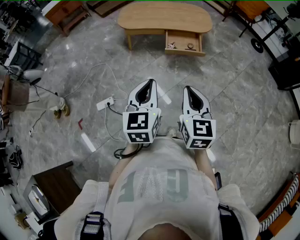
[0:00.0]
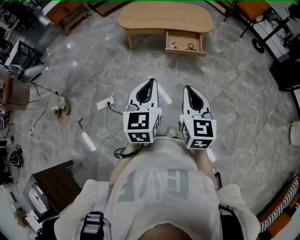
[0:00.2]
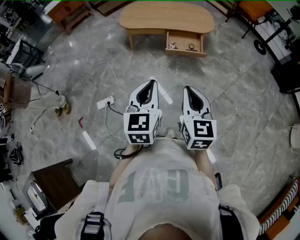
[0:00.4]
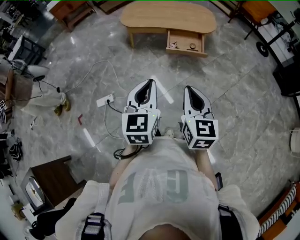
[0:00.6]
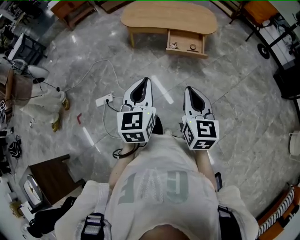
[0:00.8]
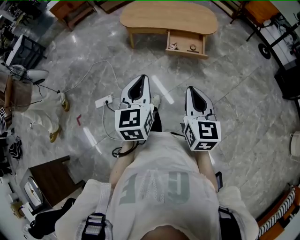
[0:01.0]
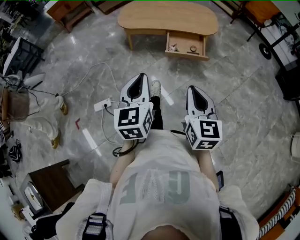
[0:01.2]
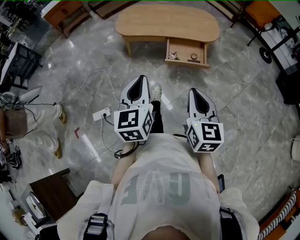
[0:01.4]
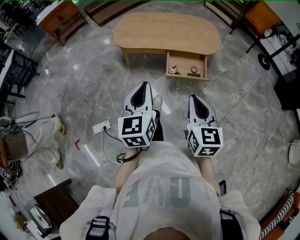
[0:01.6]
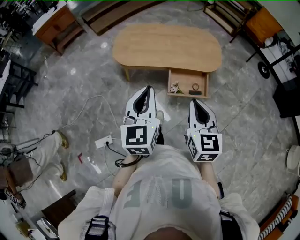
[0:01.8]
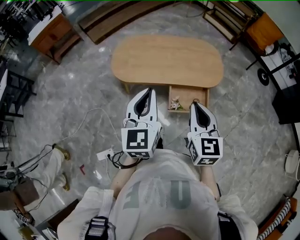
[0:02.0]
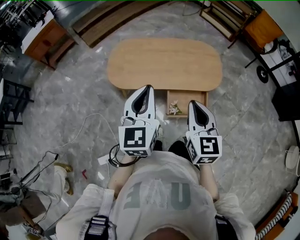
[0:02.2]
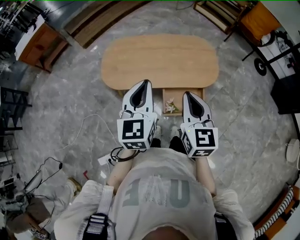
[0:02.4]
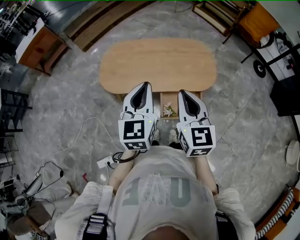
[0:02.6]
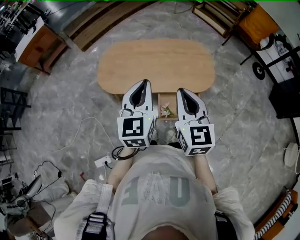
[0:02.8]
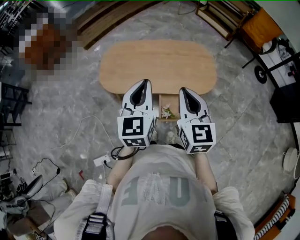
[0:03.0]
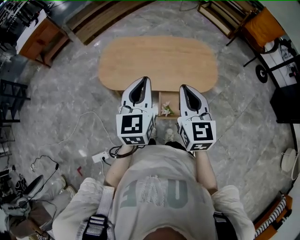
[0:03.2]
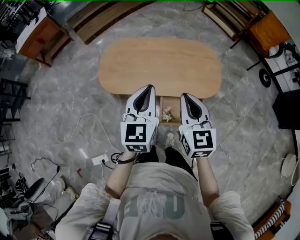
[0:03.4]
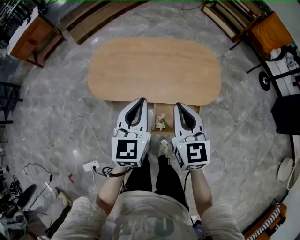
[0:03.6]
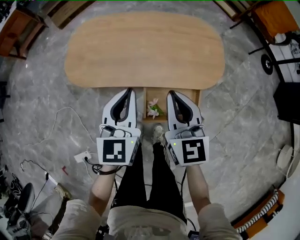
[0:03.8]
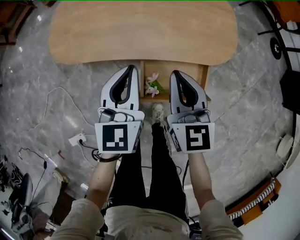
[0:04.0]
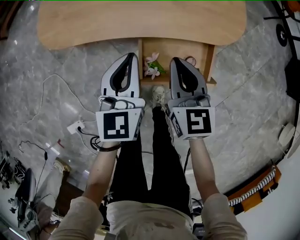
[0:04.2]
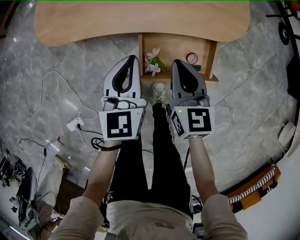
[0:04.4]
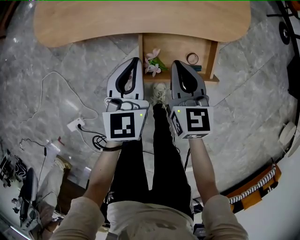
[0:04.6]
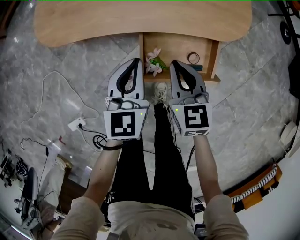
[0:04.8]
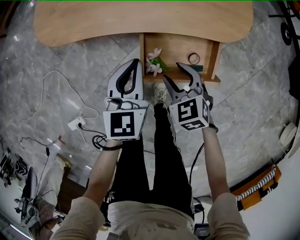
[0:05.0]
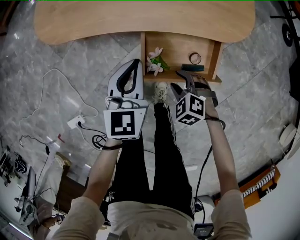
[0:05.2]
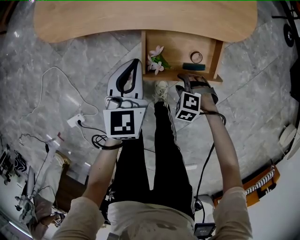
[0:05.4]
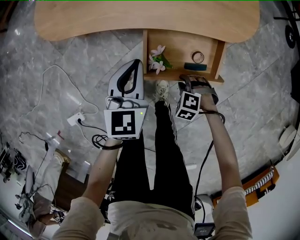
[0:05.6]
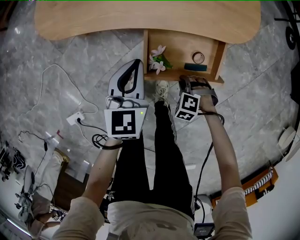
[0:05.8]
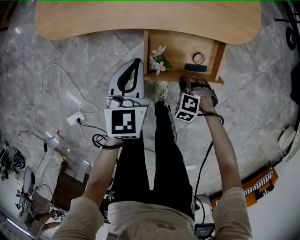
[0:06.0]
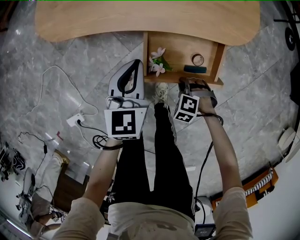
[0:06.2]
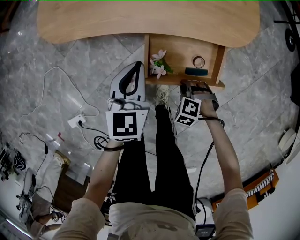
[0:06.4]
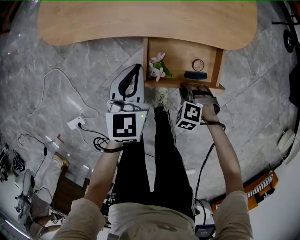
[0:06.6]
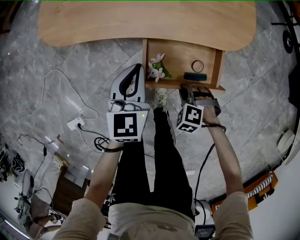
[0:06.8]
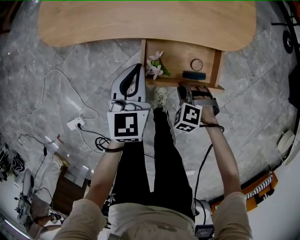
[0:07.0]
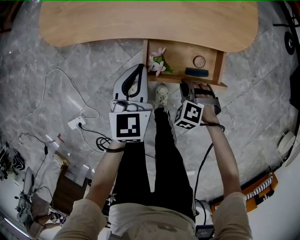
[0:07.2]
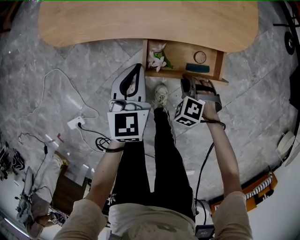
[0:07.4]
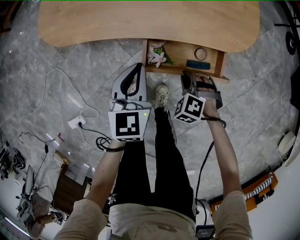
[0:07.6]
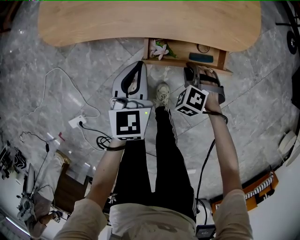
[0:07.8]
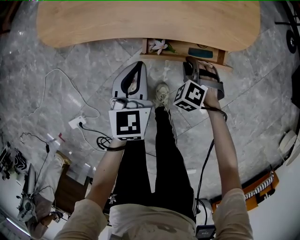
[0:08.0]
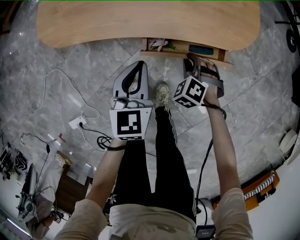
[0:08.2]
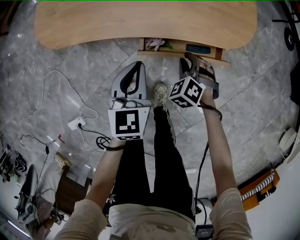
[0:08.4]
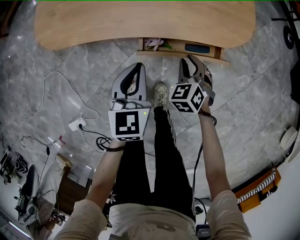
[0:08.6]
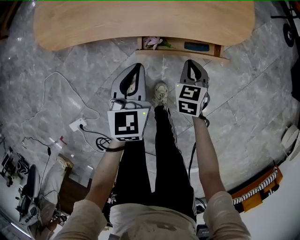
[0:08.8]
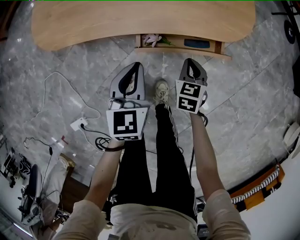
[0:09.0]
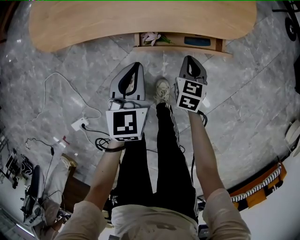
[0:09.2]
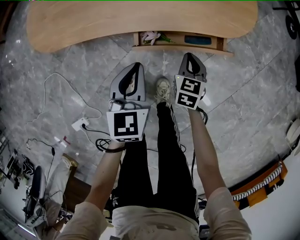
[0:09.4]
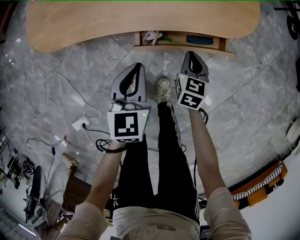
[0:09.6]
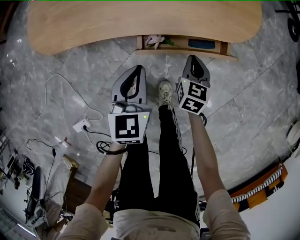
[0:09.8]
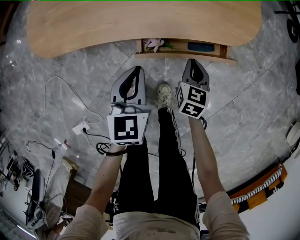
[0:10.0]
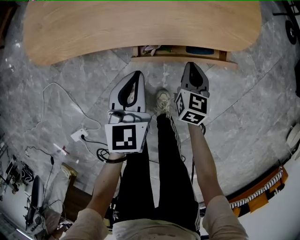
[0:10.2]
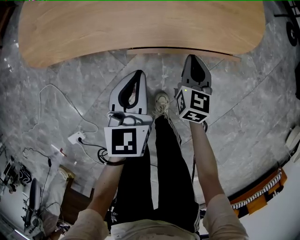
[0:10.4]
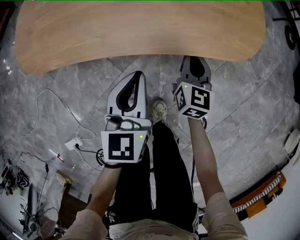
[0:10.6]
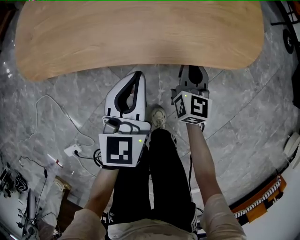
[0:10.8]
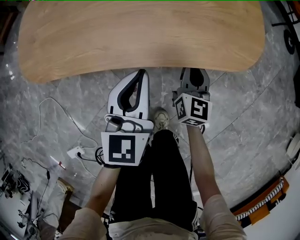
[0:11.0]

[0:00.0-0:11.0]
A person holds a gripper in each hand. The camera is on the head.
0:00.0 to 0:01.6: The grippers both shift forward by about 25 cm.
0:01.6 to 0:03.2: The grippers both shift forward by approximately 40 cm.
0:03.2 to 0:04.8: The two grippers go about 40 cm downward. The right gripper swivels approximately 20 degrees.
0:04.8 to 0:06.2: The right gripper is displaced downward by approximately 20 cm, points its fingers about 50 degrees further downward, and opens, then closes once more.
0:06.2 to 0:07.8: The right gripper ends up approximately 10 cm from where it was.
0:07.8 to 0:09.4: The right gripper rotates around the line of its fingers by approximately 70 degrees, clockwise from behind.
0:09.4 to 0:11.0: Both grippers move forward, about 10 cm. The right gripper turns by approximately 30 degrees.

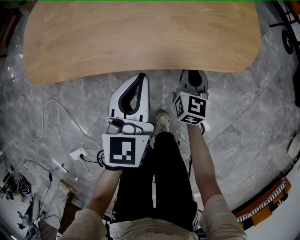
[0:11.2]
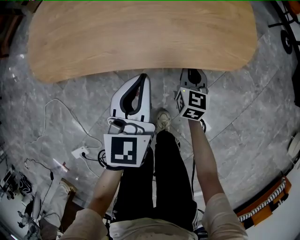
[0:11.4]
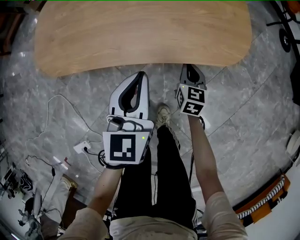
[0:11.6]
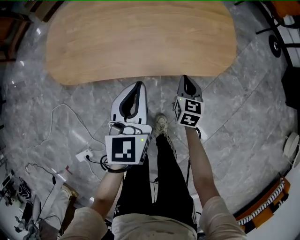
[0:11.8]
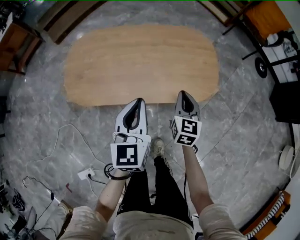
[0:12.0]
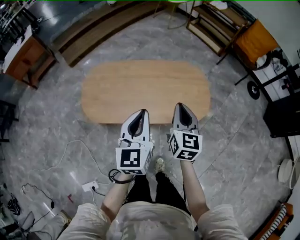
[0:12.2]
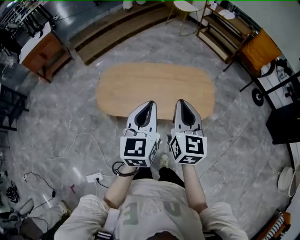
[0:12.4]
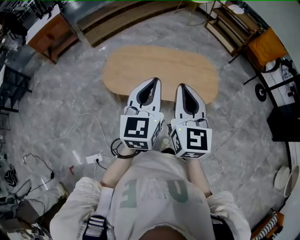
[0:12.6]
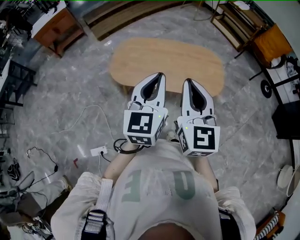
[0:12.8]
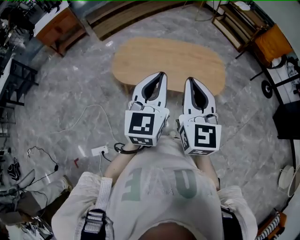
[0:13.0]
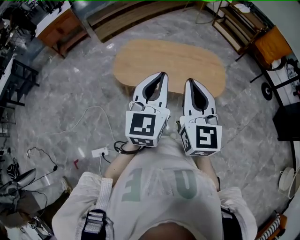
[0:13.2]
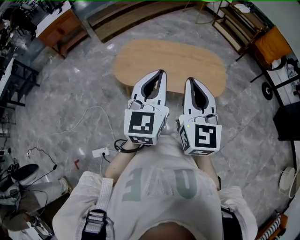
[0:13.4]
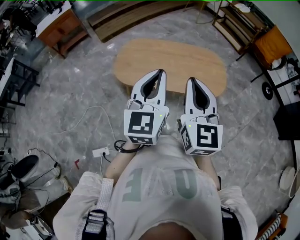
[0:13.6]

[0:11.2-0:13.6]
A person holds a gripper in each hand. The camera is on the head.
0:11.2 to 0:12.4: The two grippers go roughly 50 cm upward.
0:12.4 to 0:13.6: The grippers both shift backward and upward by approximately 15 cm.

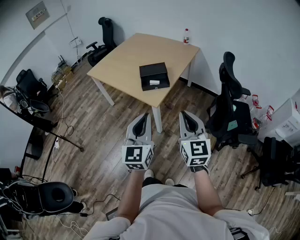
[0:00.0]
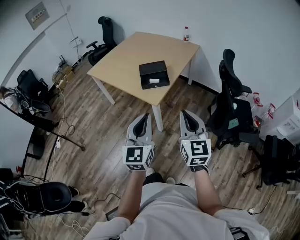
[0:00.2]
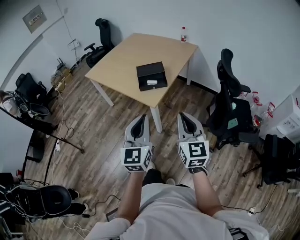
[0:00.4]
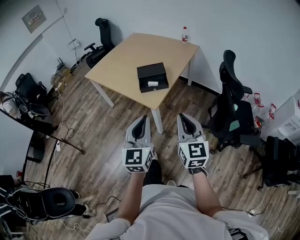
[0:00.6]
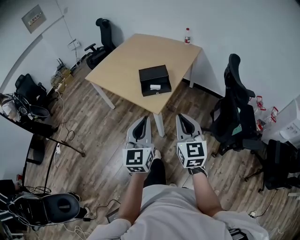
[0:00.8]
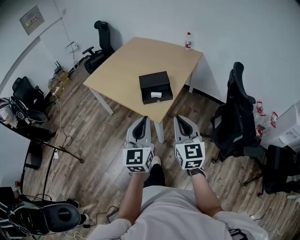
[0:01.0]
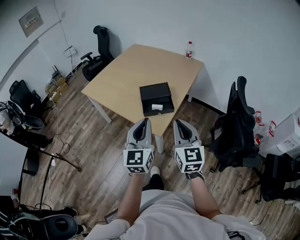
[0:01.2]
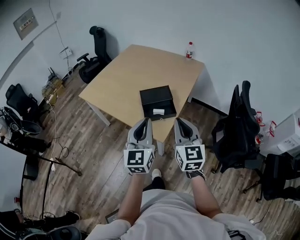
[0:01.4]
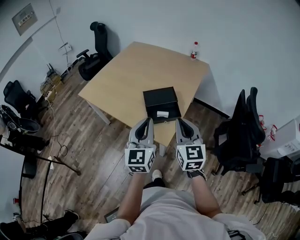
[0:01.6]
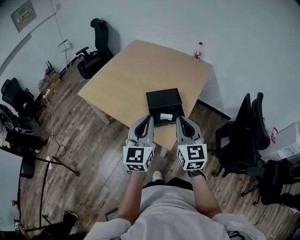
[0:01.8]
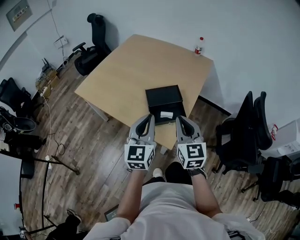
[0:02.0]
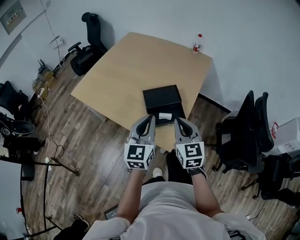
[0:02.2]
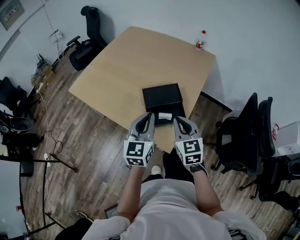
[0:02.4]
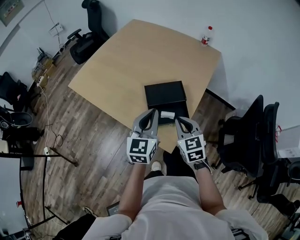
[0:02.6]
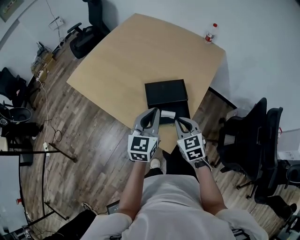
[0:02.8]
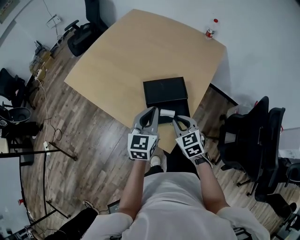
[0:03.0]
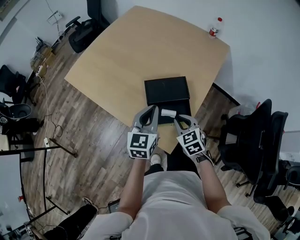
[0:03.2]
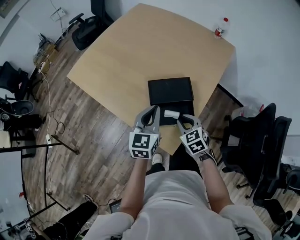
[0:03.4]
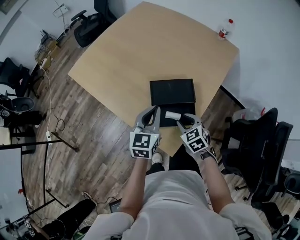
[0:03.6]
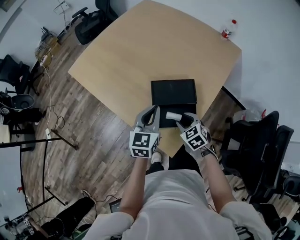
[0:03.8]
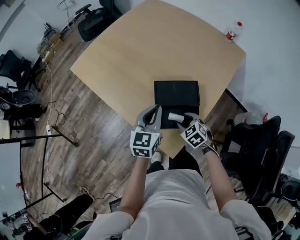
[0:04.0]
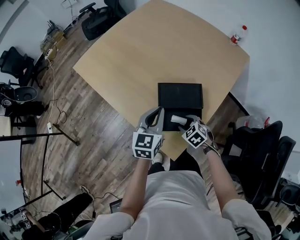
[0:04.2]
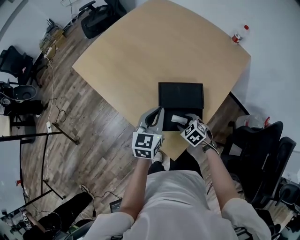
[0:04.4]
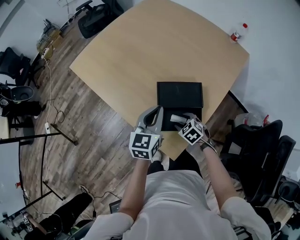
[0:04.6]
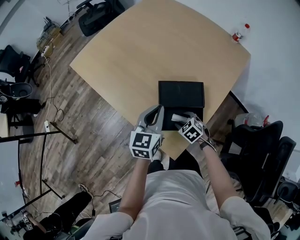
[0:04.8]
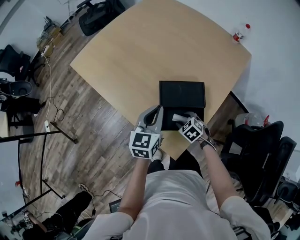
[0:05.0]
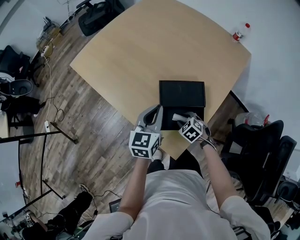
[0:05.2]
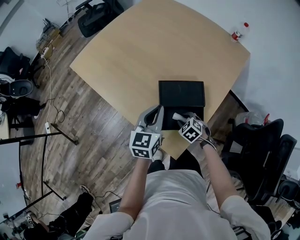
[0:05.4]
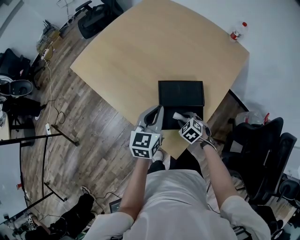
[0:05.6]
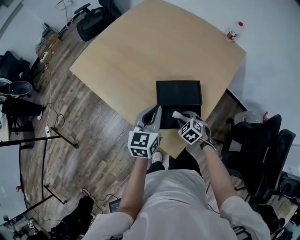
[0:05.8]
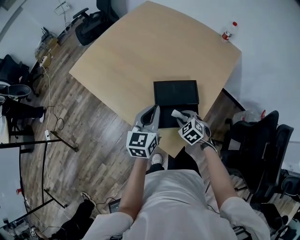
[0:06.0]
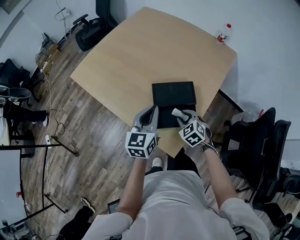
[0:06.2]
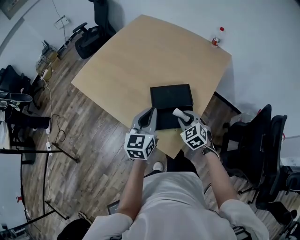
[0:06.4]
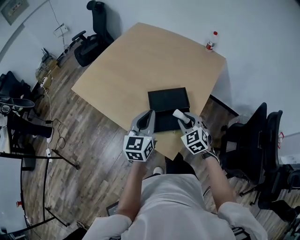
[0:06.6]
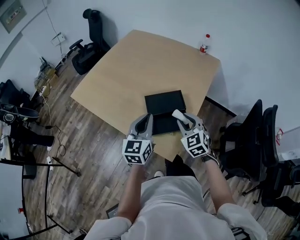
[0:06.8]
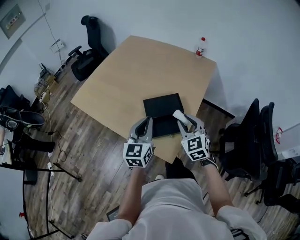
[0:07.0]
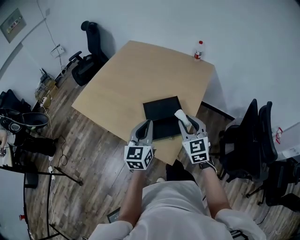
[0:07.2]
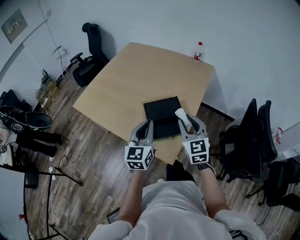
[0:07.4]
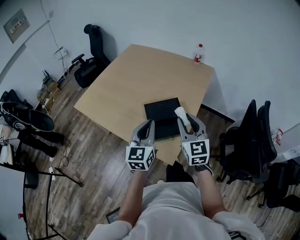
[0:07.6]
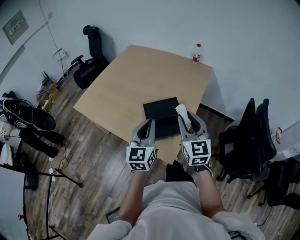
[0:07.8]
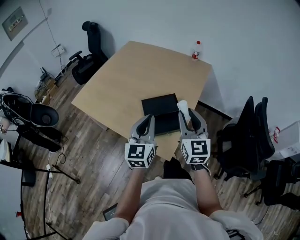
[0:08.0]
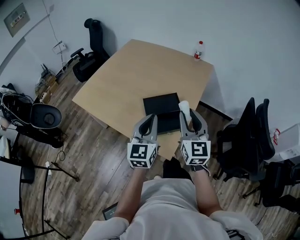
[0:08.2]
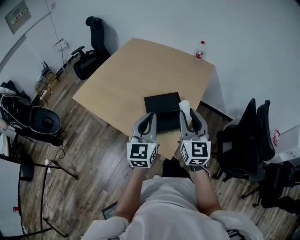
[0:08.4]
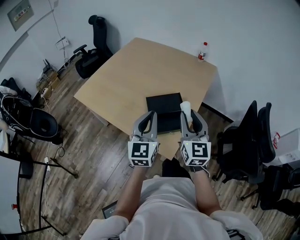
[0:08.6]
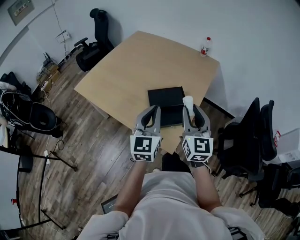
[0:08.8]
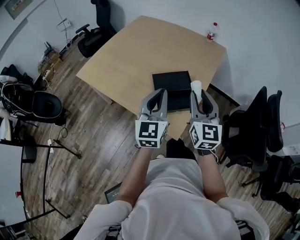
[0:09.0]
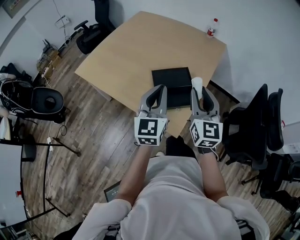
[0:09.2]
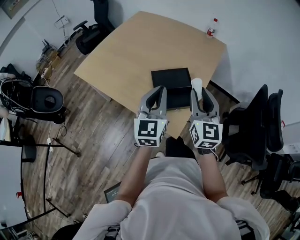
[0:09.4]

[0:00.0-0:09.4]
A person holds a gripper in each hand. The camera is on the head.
0:00.0 to 0:01.6: Both grippers move forward, approximately 30 cm.
0:01.6 to 0:03.2: The right gripper heads downward and forward, covering about 30 cm, and tilts its fingers roughly 40 degrees downward. The left gripper travels forward and downward by about 25 cm.
0:03.2 to 0:04.8: The left gripper travels forward by about 5 cm. Meanwhile the right gripper moves downward, approximately 15 cm, turns by about 30 degrees, and opens.
0:04.8 to 0:06.2: The right gripper heads upward, covering about 10 cm.
0:06.2 to 0:07.8: The left gripper moves upward and backward, approximately 10 cm; the right gripper goes some 25 cm upward, and tilts its fingers approximately 50 degrees upward.
0:07.8 to 0:09.4: The grippers make only small movements.

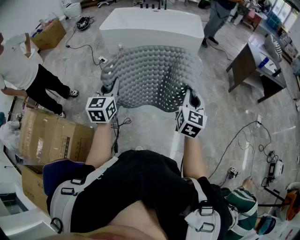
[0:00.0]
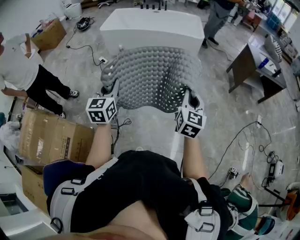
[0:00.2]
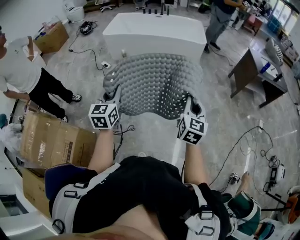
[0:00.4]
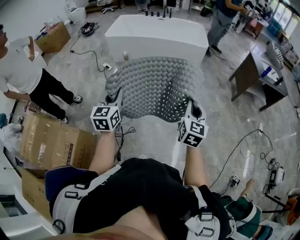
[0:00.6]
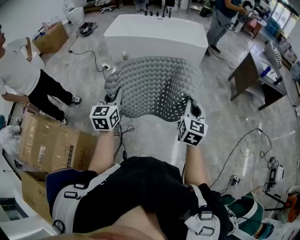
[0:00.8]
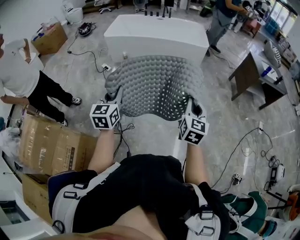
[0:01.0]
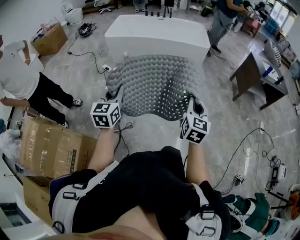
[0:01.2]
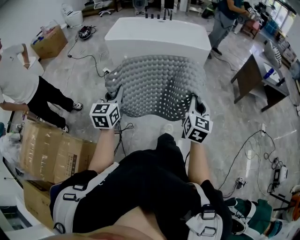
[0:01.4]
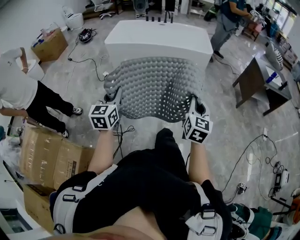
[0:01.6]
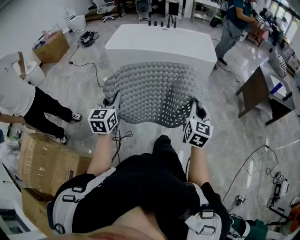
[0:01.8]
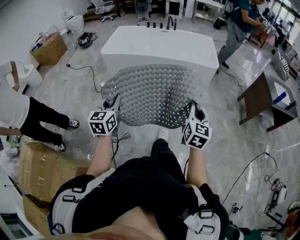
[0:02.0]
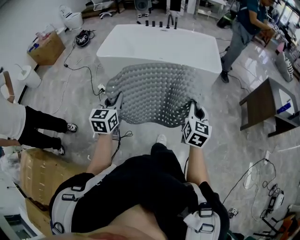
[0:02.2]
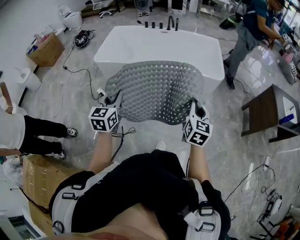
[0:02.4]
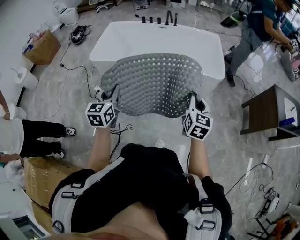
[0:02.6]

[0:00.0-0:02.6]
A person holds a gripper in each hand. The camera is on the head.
0:00.0 to 0:01.2: The two grippers go roughly 10 cm to the left.
0:01.2 to 0:02.6: Both grippers are carried forward, some 60 cm.
